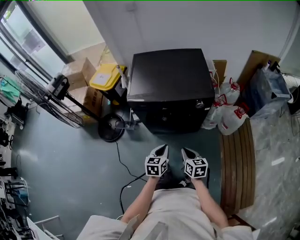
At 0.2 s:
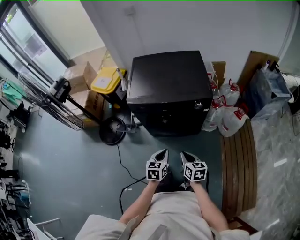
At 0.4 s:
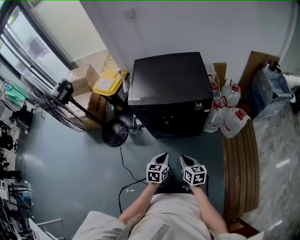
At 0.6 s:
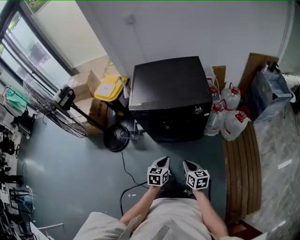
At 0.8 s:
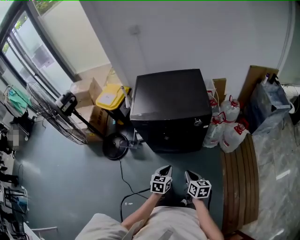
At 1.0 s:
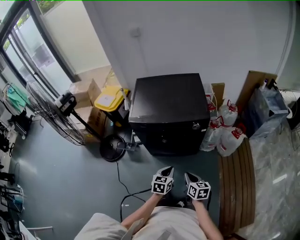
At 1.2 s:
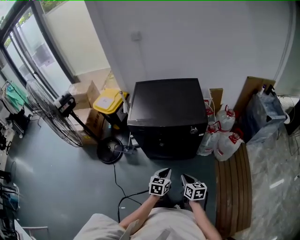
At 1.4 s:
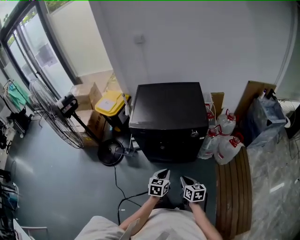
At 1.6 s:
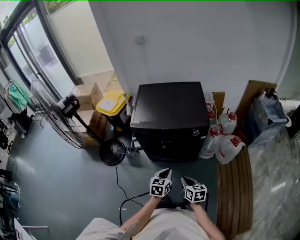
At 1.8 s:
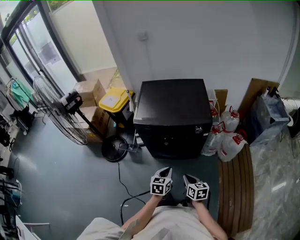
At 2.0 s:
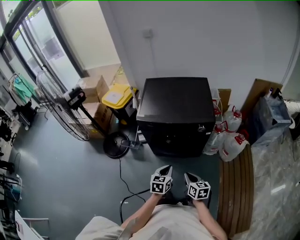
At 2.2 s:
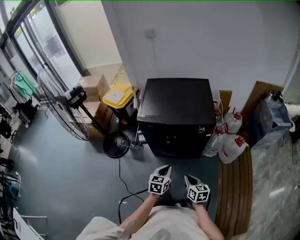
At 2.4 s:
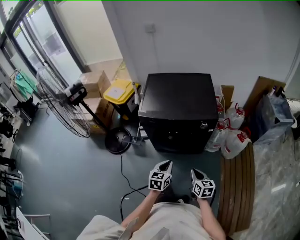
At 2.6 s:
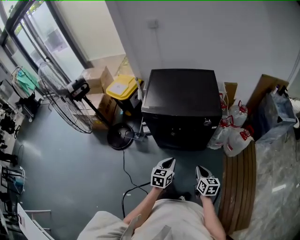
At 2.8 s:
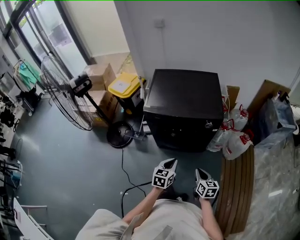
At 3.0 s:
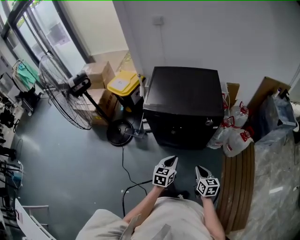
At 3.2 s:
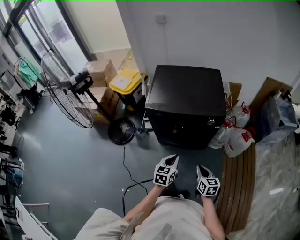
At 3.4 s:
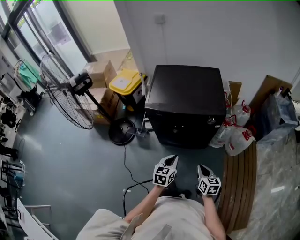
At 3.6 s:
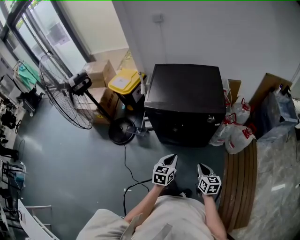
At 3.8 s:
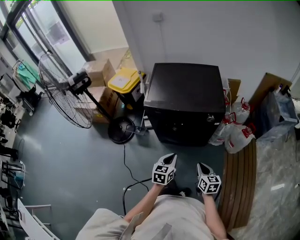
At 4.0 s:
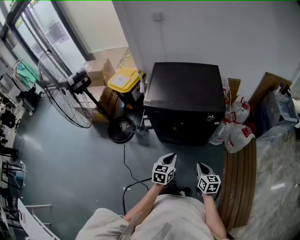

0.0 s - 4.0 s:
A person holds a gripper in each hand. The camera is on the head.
1.4 s - 4.0 s: The grippers move only a little.

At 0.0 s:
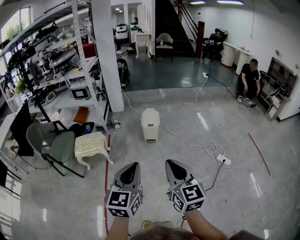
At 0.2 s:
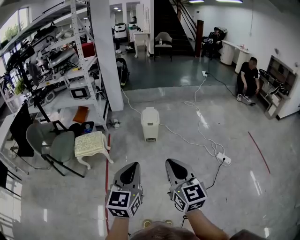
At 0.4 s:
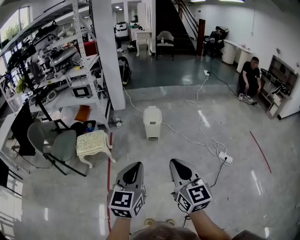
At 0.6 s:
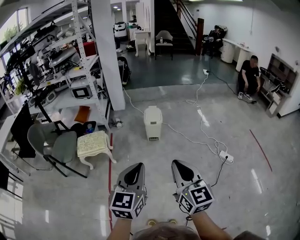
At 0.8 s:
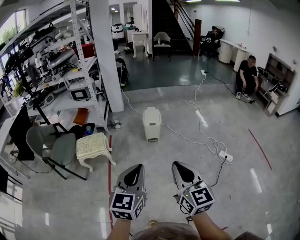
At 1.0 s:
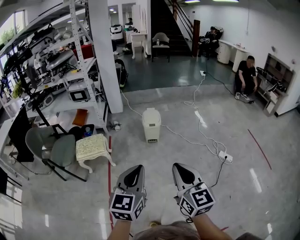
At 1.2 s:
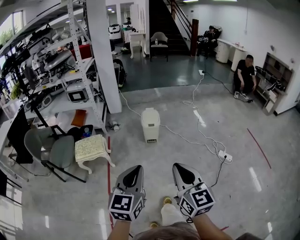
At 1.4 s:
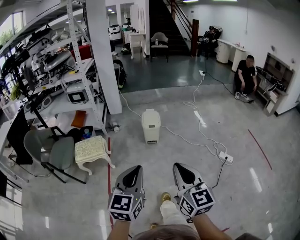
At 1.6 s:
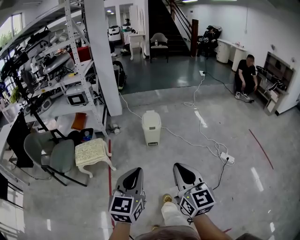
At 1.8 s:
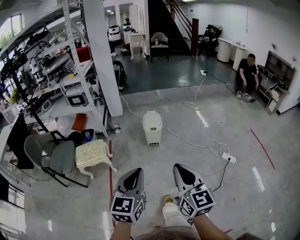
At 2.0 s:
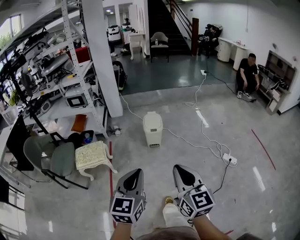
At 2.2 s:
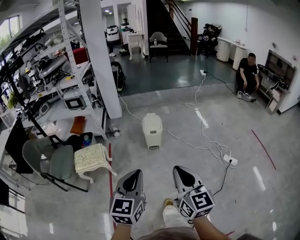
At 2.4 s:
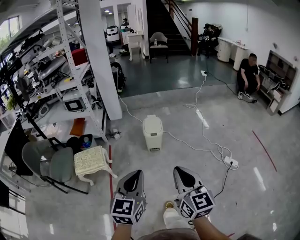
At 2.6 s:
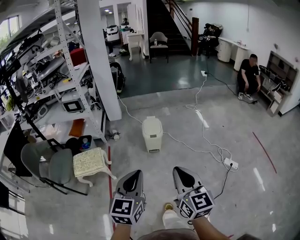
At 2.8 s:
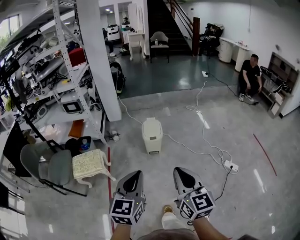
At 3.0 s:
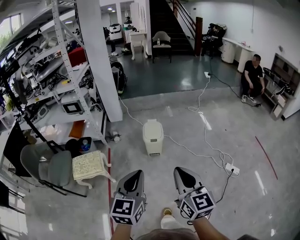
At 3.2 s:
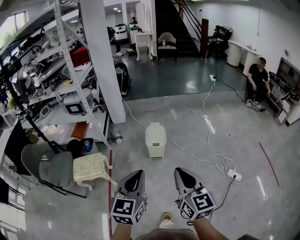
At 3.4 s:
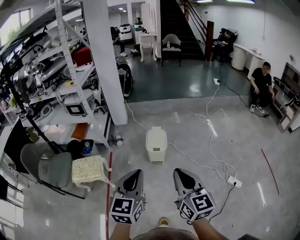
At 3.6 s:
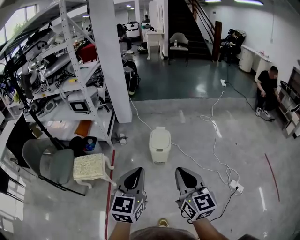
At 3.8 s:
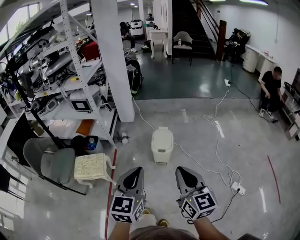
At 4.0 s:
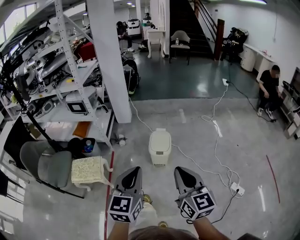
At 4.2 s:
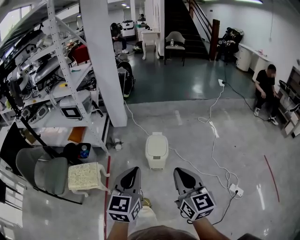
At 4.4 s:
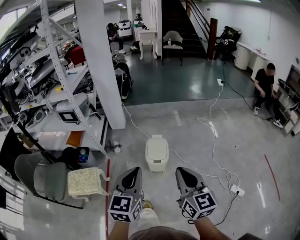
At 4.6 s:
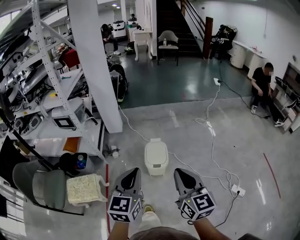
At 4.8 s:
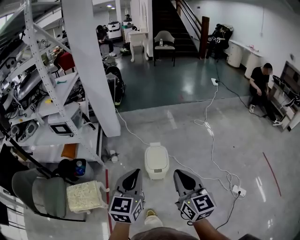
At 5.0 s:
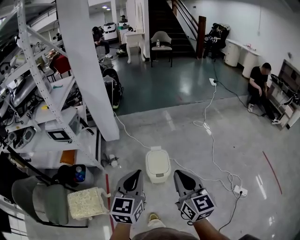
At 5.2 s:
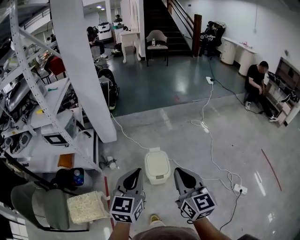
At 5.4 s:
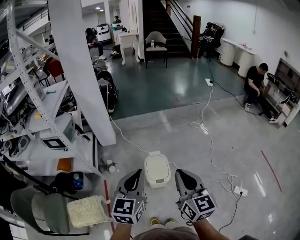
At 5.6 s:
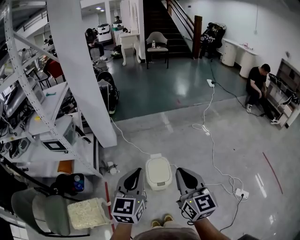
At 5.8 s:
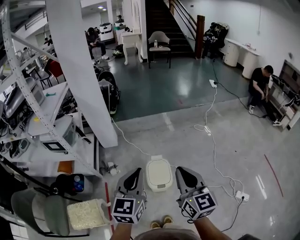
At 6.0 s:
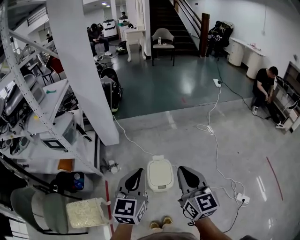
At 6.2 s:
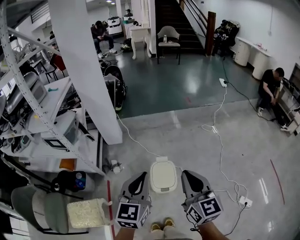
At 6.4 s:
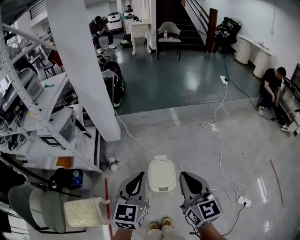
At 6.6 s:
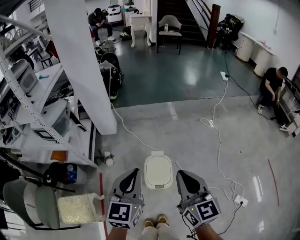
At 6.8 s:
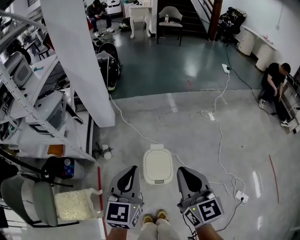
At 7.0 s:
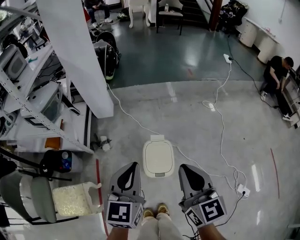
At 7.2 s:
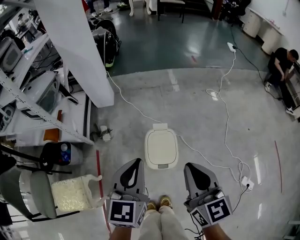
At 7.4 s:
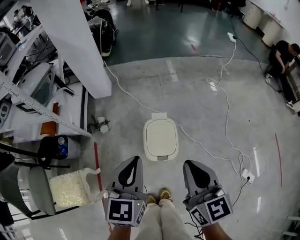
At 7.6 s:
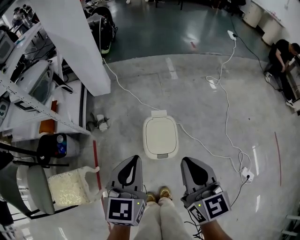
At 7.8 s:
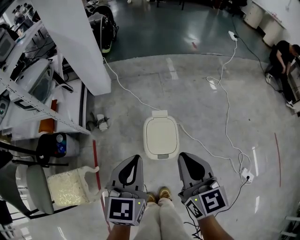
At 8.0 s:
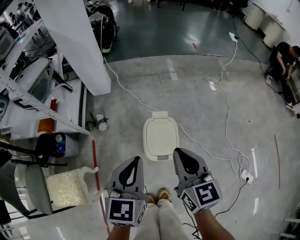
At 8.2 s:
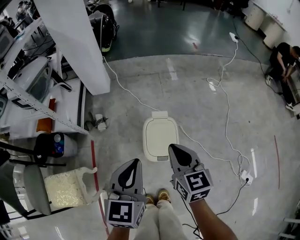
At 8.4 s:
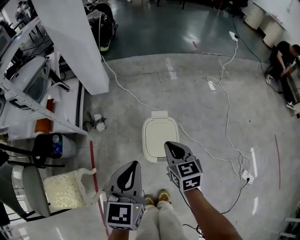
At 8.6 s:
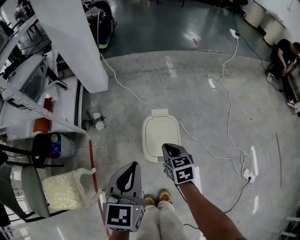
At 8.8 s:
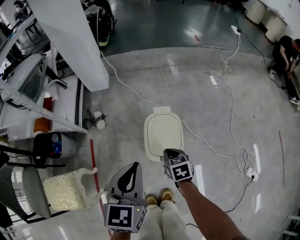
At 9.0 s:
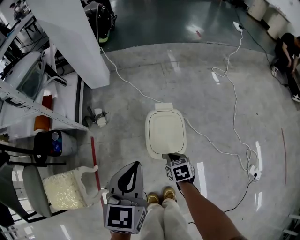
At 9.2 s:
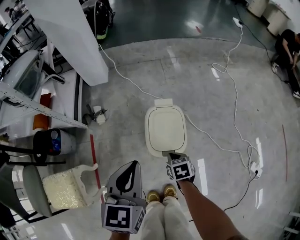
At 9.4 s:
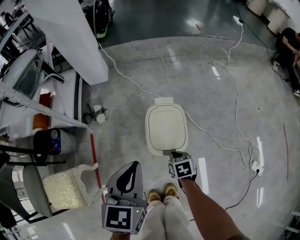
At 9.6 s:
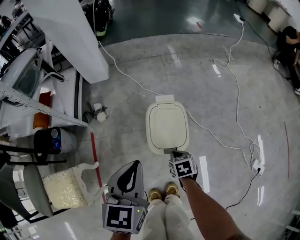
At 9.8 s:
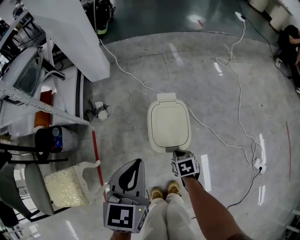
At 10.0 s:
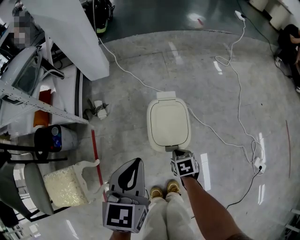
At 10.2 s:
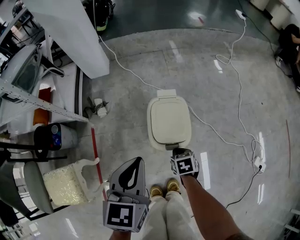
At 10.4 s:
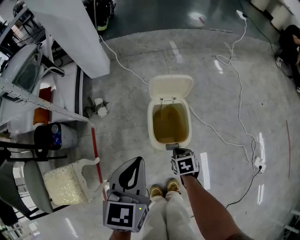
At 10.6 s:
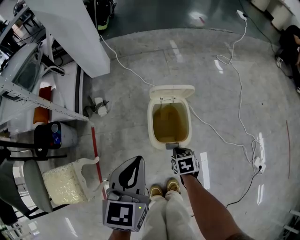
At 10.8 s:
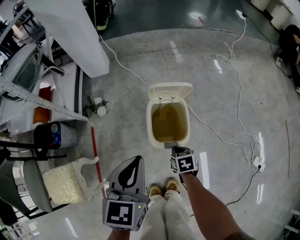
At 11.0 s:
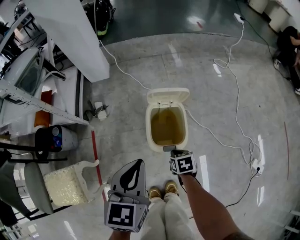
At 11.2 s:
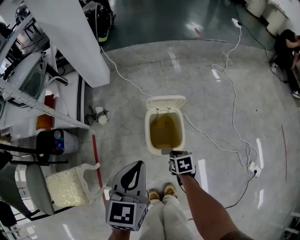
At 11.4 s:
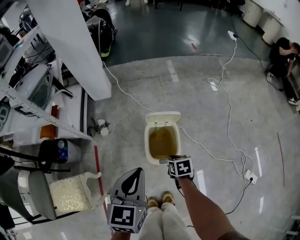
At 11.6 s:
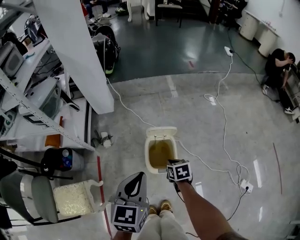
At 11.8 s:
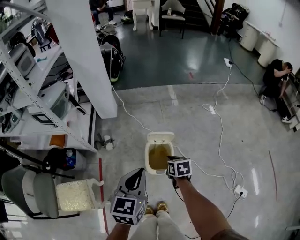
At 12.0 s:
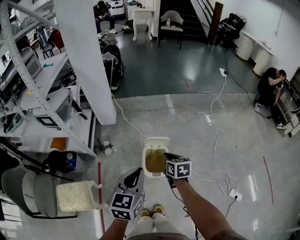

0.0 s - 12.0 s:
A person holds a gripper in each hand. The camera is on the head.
0.0 s - 1.6 s: The left gripper ends up about 5 cm from where it was.
1.6 s - 3.0 s: The grippers both shift forward by about 15 cm.
3.0 s - 4.4 s: Both grippers travel together forward, some 25 cm.
4.4 s - 6.0 s: The grippers both shift forward by roughly 25 cm.
6.0 s - 7.6 s: Both grippers move downward, approximately 20 cm.
7.6 s - 9.0 s: The right gripper is displaced downward by roughly 40 cm, and tilts its fingers about 50 degrees downward, while the left gripper travels downward by roughly 10 cm.
9.0 s - 10.4 s: The right gripper heads downward, covering about 5 cm.
10.4 s - 12.0 s: The right gripper shifts about 40 cm upward, and rotates approximately 30 degrees; the left gripper moves upward, approximately 25 cm.

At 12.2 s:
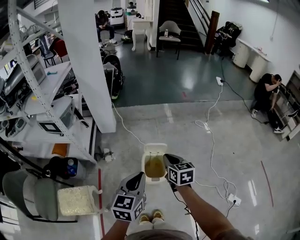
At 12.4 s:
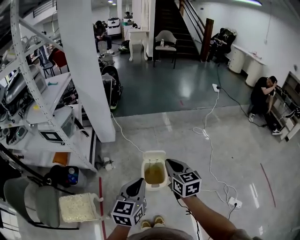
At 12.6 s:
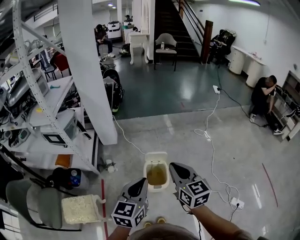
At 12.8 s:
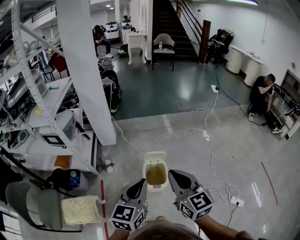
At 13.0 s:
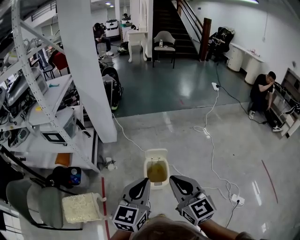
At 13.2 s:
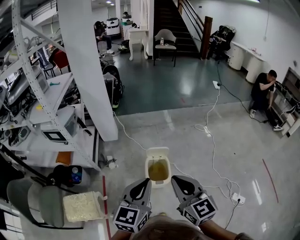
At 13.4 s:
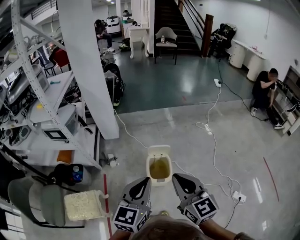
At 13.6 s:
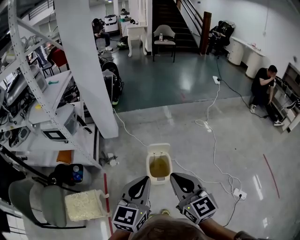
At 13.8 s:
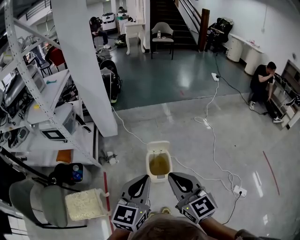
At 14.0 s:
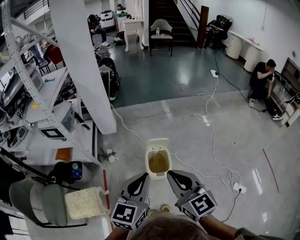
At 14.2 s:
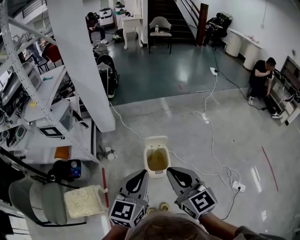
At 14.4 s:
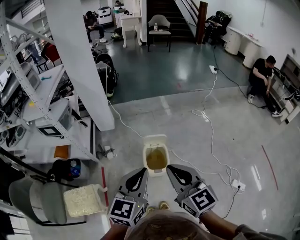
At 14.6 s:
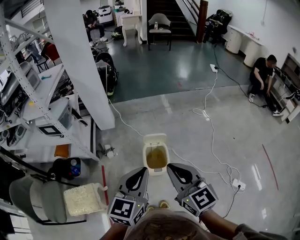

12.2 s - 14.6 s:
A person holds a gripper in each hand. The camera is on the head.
12.2 s - 13.4 s: The left gripper shifts some 10 cm upward and backward. Meanwhile the right gripper travels upward and backward by about 25 cm, and turns by about 20 degrees.
13.4 s - 14.6 s: The grippers stay close to where they were, moving slightly.

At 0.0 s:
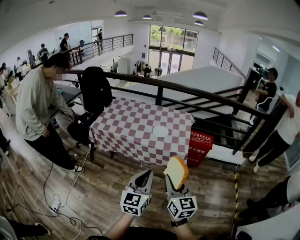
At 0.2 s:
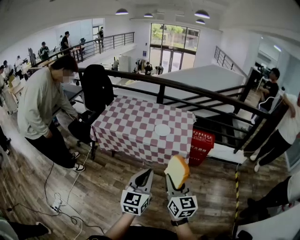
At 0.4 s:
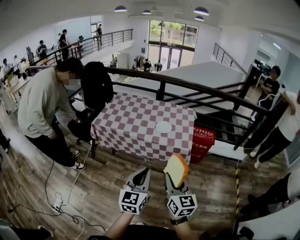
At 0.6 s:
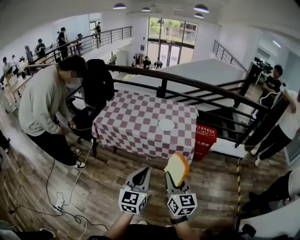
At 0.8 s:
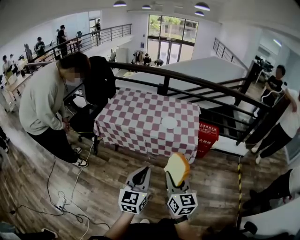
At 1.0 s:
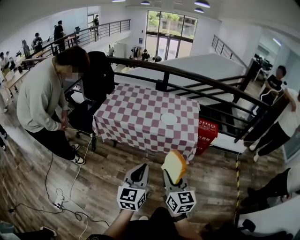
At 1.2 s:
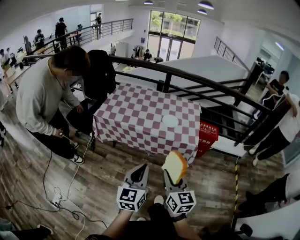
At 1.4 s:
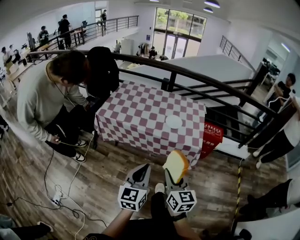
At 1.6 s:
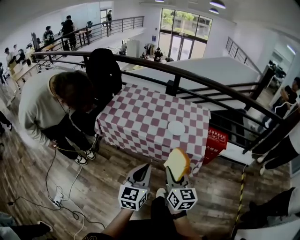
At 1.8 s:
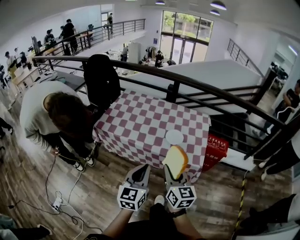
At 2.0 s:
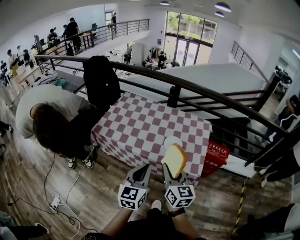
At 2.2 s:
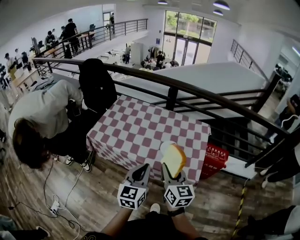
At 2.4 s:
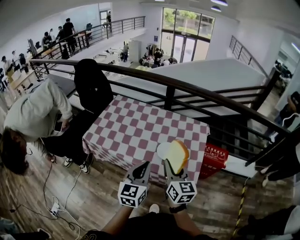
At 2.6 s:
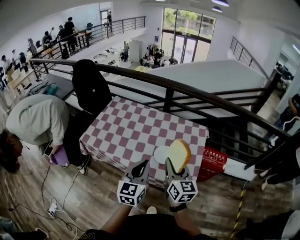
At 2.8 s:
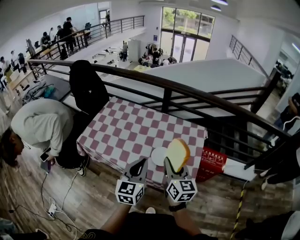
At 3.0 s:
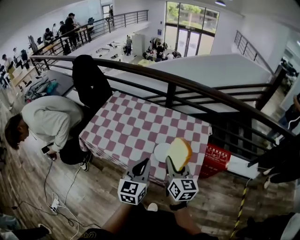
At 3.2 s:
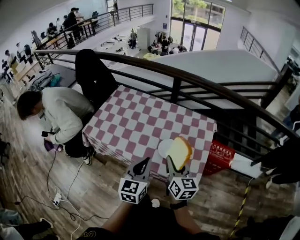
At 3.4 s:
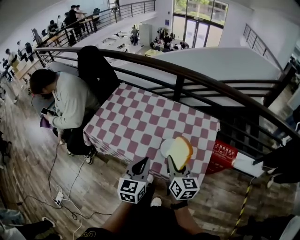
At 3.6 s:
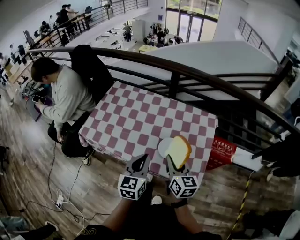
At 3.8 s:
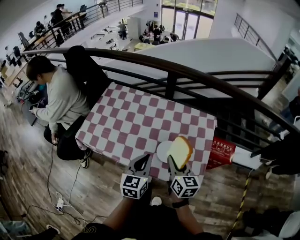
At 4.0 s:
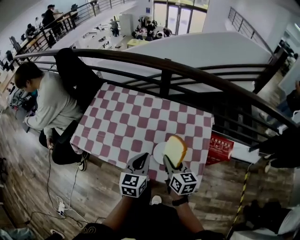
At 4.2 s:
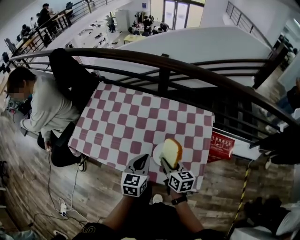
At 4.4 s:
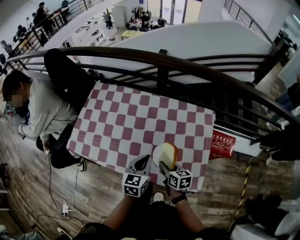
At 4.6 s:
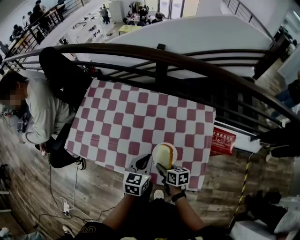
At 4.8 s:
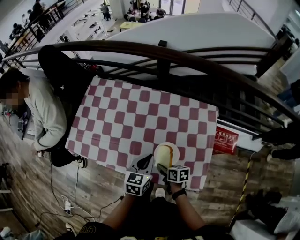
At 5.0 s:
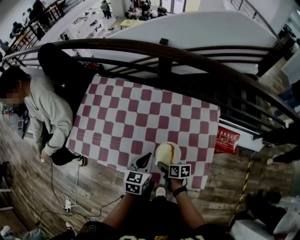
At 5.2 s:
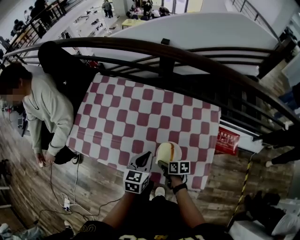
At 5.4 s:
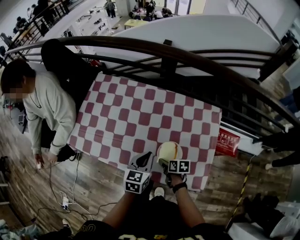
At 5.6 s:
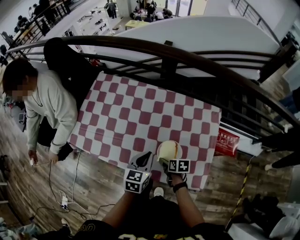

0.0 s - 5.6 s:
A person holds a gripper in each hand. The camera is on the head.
0.0 s - 1.4 s: The right gripper moves to the left, downward and forward, roughly 15 cm. The left gripper goes roughly 15 cm to the left, forward and downward.
1.4 s - 2.8 s: Both grippers travel together forward, roughly 35 cm.
2.8 s - 4.2 s: Both grippers travel together downward and forward, roughly 20 cm. The right gripper rotates some 30 degrees.
4.2 s - 5.6 s: The right gripper travels downward by some 15 cm, turns by some 30 degrees, and opens. The left gripper ends up roughly 5 cm from where it was.
